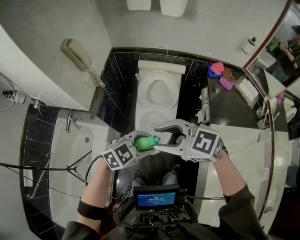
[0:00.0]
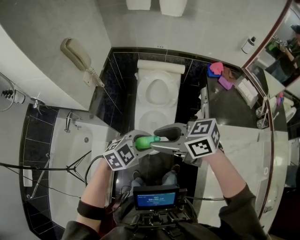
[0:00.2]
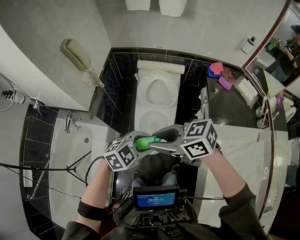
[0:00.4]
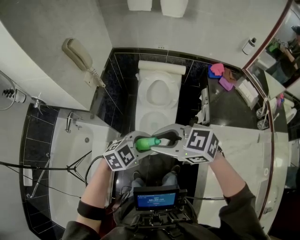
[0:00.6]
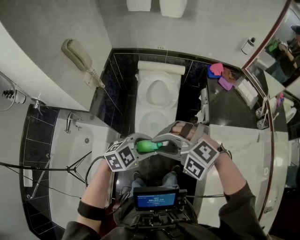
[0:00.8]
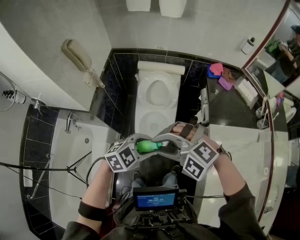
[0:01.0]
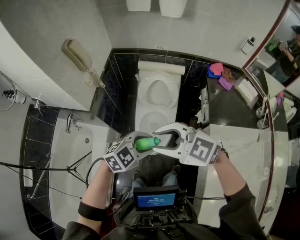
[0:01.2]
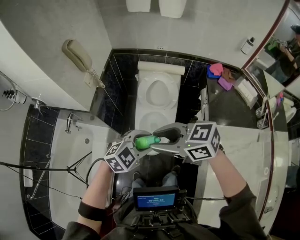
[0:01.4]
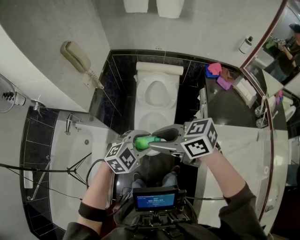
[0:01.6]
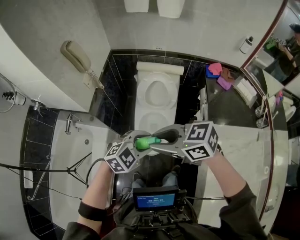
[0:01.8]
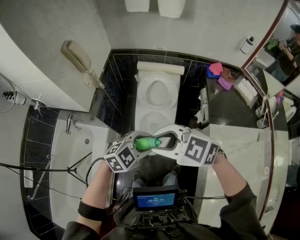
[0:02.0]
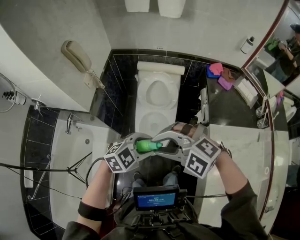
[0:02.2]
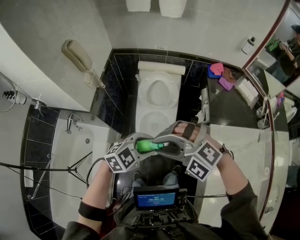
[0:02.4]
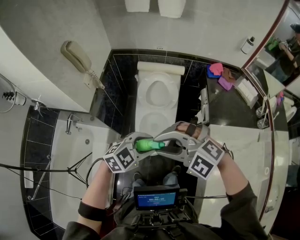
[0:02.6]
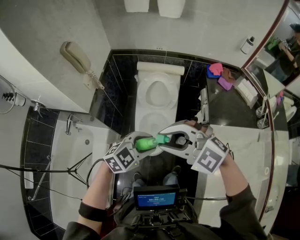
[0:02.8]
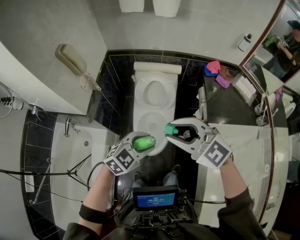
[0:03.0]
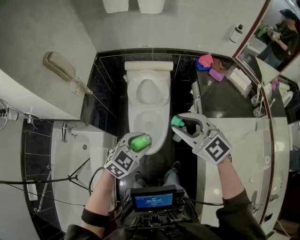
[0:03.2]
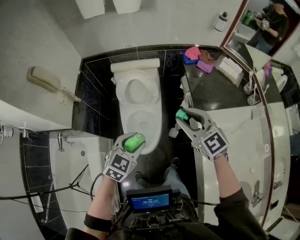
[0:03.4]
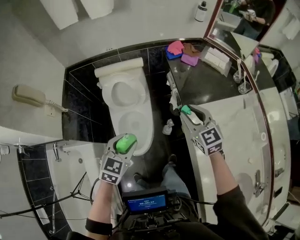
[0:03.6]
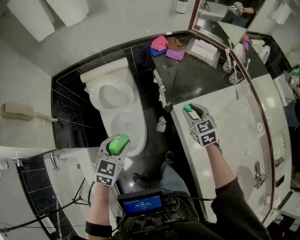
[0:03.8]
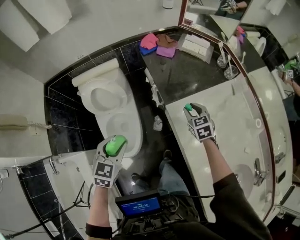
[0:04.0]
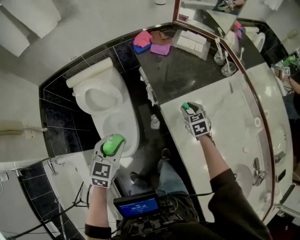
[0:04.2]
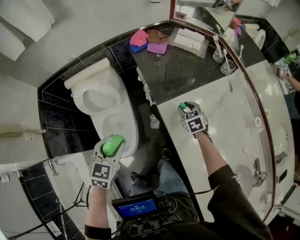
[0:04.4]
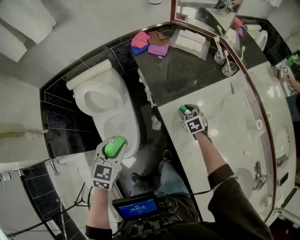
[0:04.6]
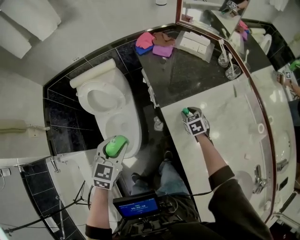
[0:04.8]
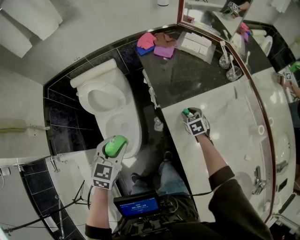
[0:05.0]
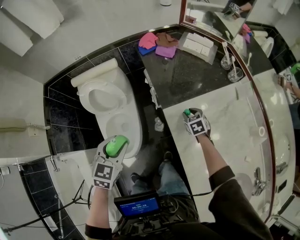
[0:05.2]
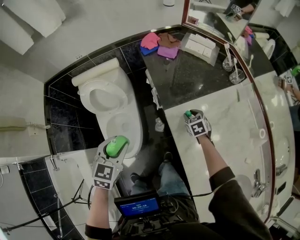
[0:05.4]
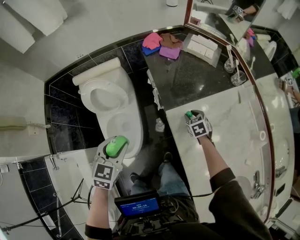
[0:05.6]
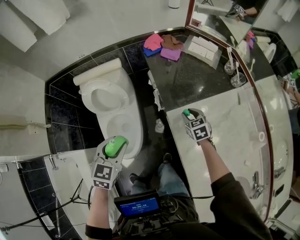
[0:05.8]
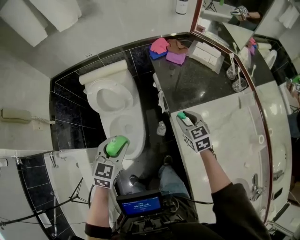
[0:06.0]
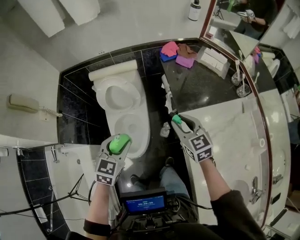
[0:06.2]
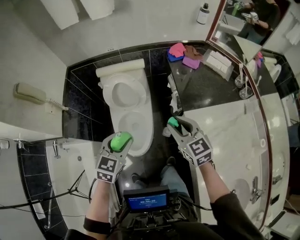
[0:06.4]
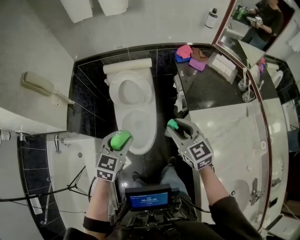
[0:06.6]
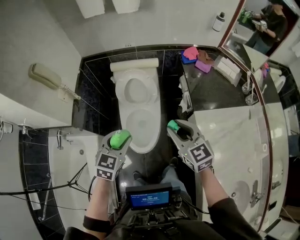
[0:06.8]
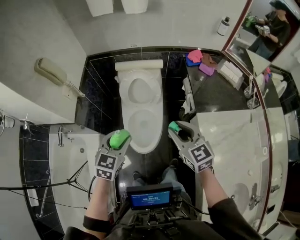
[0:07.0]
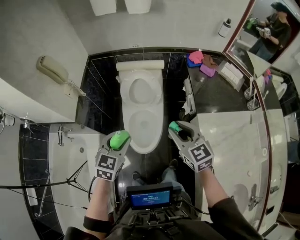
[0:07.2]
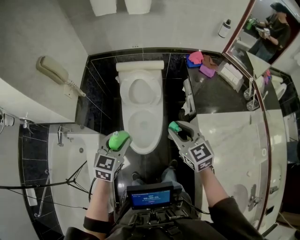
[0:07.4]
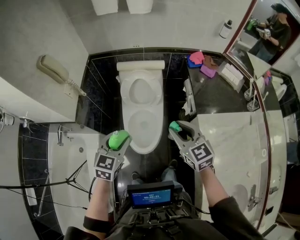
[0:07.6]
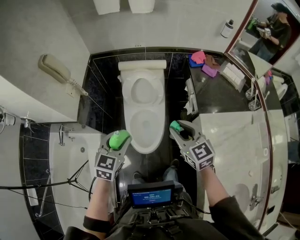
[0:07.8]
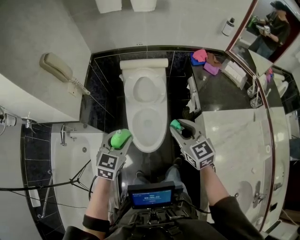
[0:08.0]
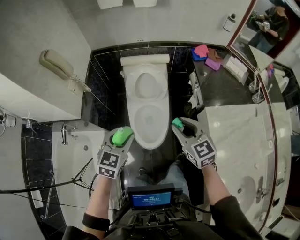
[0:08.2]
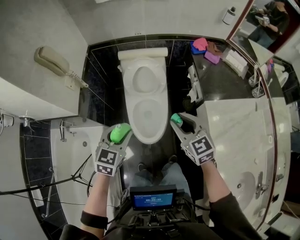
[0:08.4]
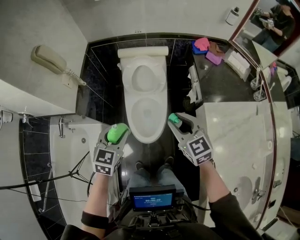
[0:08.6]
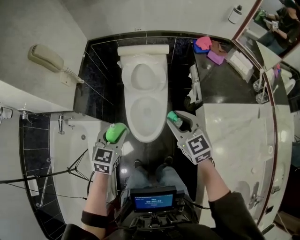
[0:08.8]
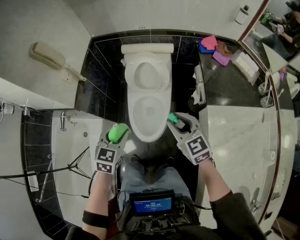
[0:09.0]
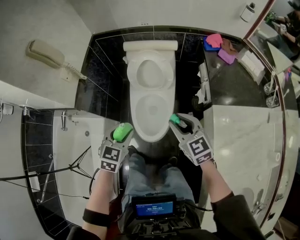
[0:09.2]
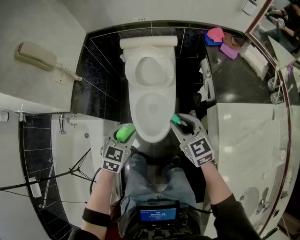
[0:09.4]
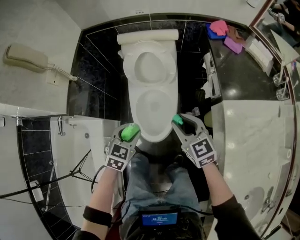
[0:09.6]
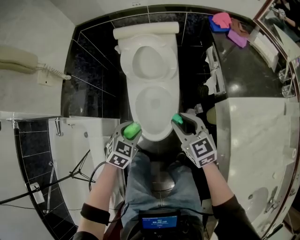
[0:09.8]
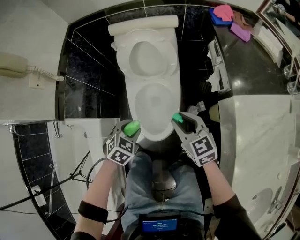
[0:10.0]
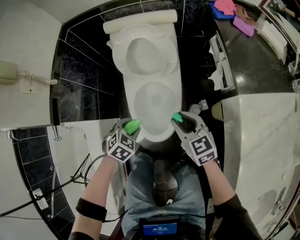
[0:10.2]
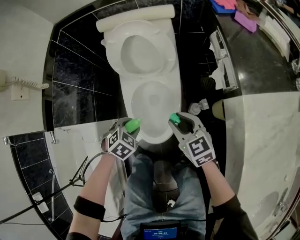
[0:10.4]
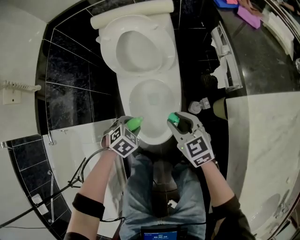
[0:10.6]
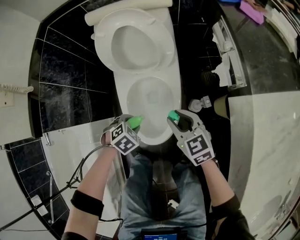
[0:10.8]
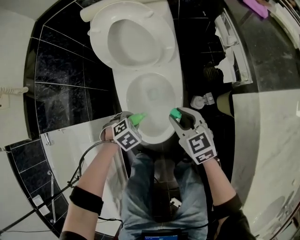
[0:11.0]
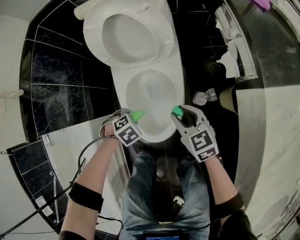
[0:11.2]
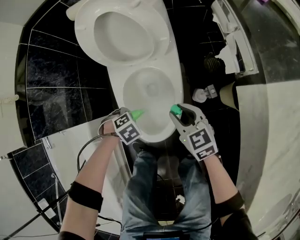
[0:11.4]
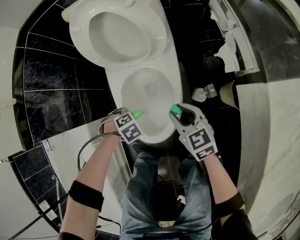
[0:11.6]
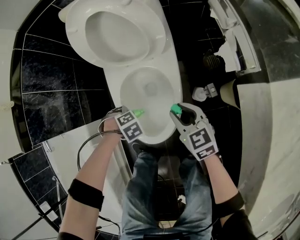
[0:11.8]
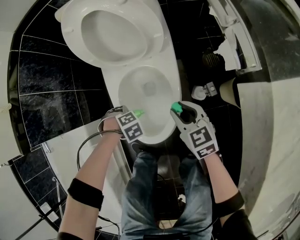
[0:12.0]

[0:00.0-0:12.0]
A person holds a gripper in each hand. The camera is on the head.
0:00.0 to 0:01.6: The right gripper swivels approximately 30 degrees.
0:01.6 to 0:03.0: The right gripper ends up approximately 5 cm from where it was, and twists approximately 50 degrees counterclockwise, seen from behind.
0:03.0 to 0:04.4: The left gripper moves approximately 20 cm. The right gripper changes place by approximately 60 cm, and angles its fingers downward, by some 30 degrees.
0:04.4 to 0:06.0: The right gripper travels upward and to the left by about 15 cm.
0:06.0 to 0:07.6: The right gripper travels to the left and upward by approximately 30 cm, and rotates about 20 degrees; the left gripper travels to the left by about 20 cm.
0:07.6 to 0:09.0: Both grippers travel together downward, approximately 5 cm.
0:09.0 to 0:10.4: The two grippers go approximately 30 cm downward. The left gripper tilts its fingers some 30 degrees downward.
0:10.4 to 0:12.0: The two grippers go about 20 cm downward. The left gripper changes its angle by some 40 degrees.

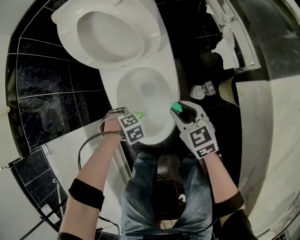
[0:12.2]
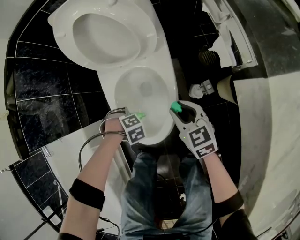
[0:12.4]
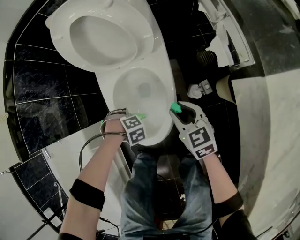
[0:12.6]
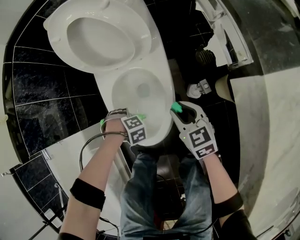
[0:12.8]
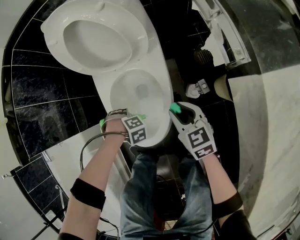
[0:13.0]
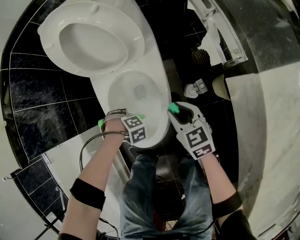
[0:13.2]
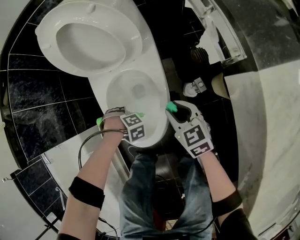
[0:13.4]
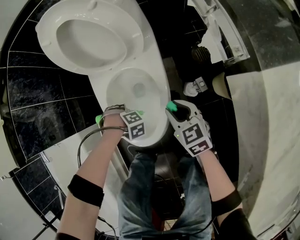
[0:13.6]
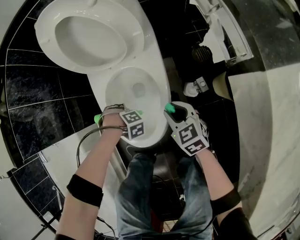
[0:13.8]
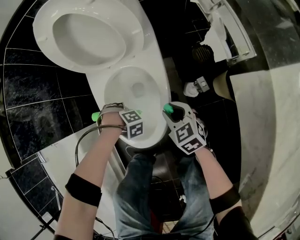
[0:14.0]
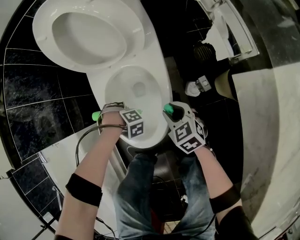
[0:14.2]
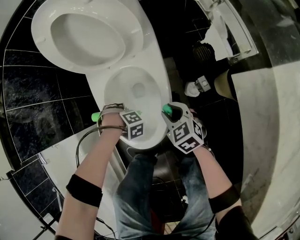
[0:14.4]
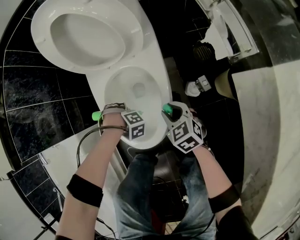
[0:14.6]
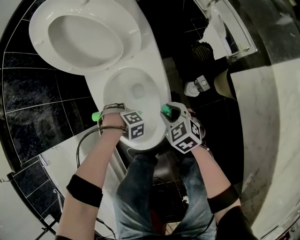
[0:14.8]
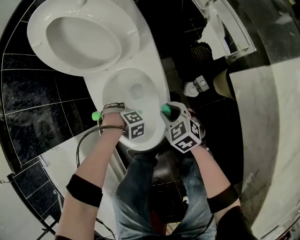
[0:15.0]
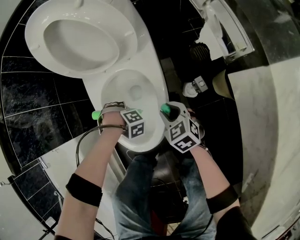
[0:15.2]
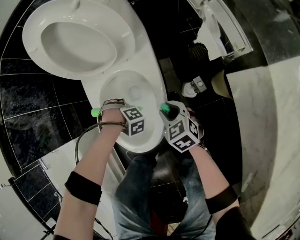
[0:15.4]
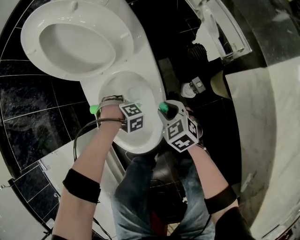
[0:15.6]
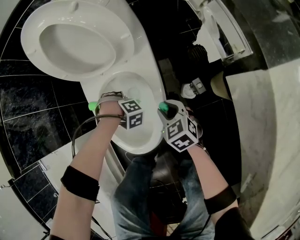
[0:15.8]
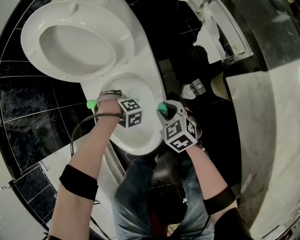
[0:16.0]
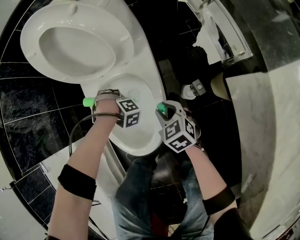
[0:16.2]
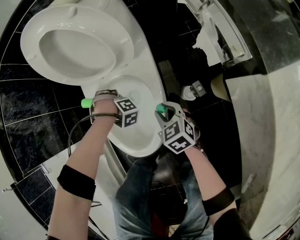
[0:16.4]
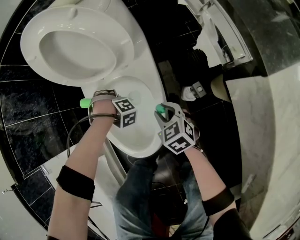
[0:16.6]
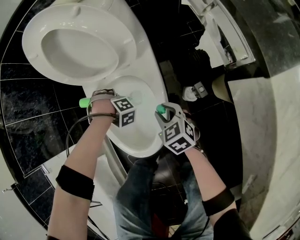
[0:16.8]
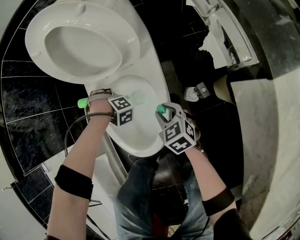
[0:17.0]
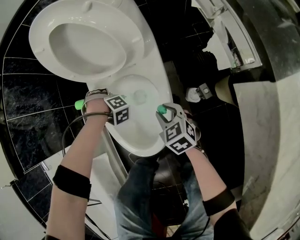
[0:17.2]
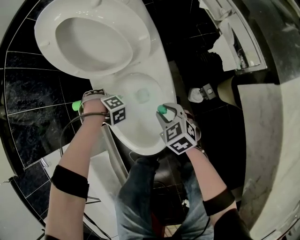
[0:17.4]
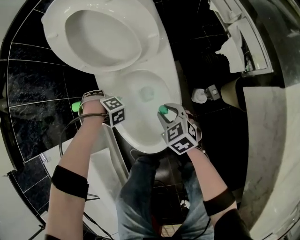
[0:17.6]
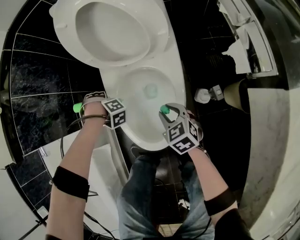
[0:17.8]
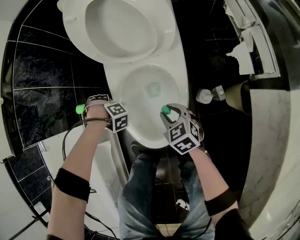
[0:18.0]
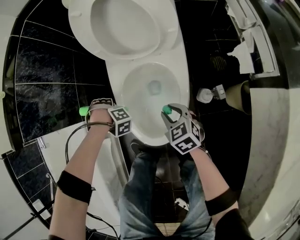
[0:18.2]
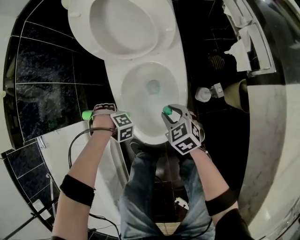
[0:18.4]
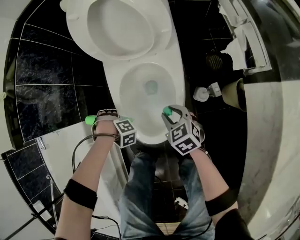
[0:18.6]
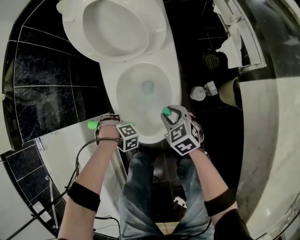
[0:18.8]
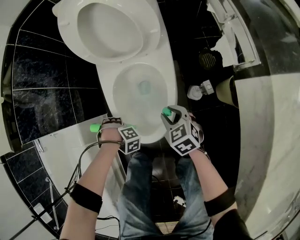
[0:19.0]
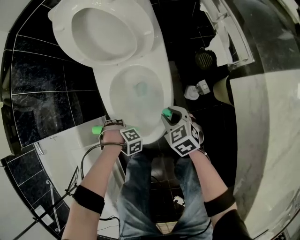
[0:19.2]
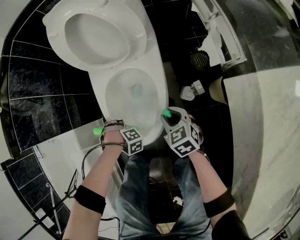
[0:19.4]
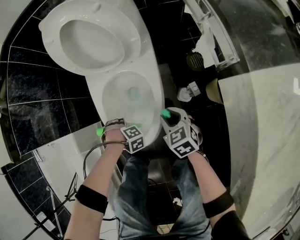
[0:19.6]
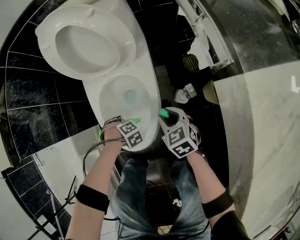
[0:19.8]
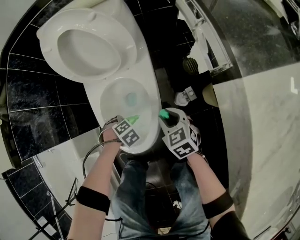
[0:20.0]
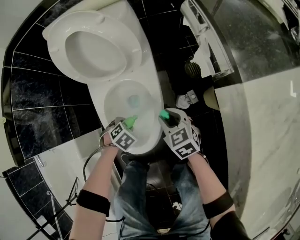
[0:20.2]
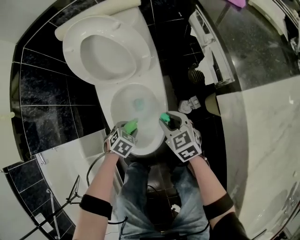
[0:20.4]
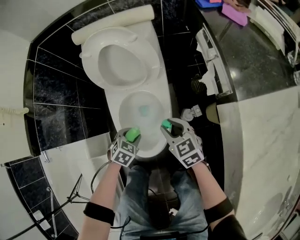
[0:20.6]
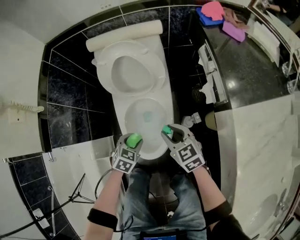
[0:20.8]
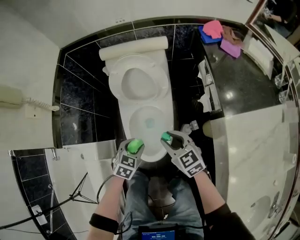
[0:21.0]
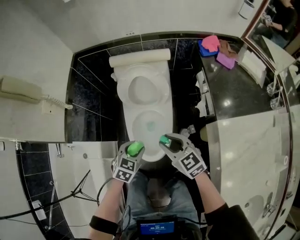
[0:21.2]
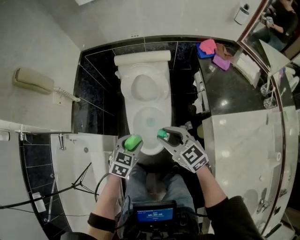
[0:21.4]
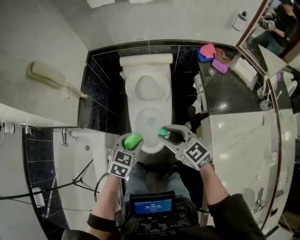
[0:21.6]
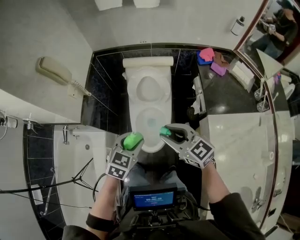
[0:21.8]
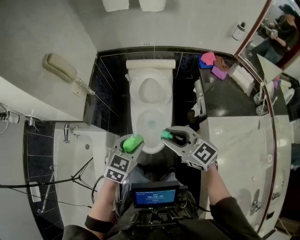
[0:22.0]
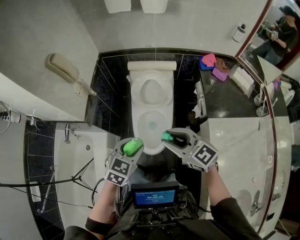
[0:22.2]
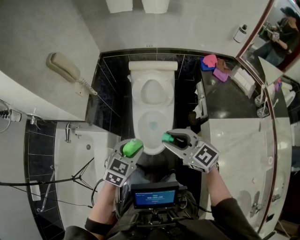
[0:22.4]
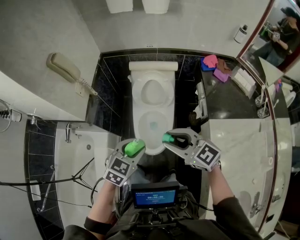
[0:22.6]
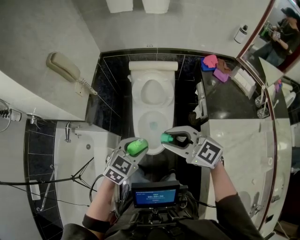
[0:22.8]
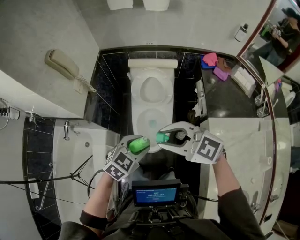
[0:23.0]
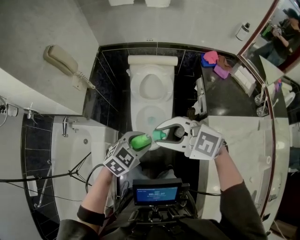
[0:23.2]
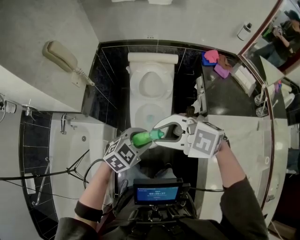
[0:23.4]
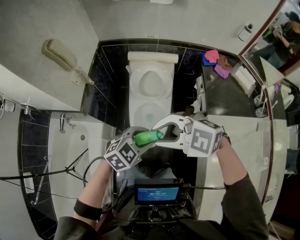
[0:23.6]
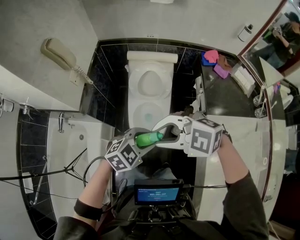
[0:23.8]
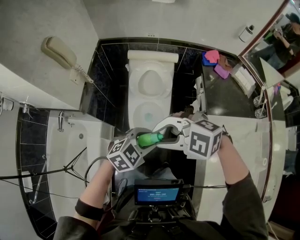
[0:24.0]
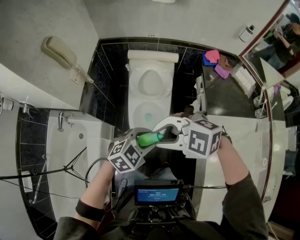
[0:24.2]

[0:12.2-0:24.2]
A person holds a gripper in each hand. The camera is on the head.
0:12.2 to 0:13.8: The right gripper travels downward by approximately 5 cm.
0:13.8 to 0:15.2: The right gripper heads downward, covering some 5 cm.
0:15.2 to 0:16.6: The left gripper moves to the right and forward, about 10 cm.
0:16.6 to 0:18.2: The left gripper is displaced to the left and forward by roughly 20 cm. Meanwhile the right gripper shifts some 10 cm to the left and forward.
0:18.2 to 0:19.8: The right gripper ends up about 10 cm from where it was; the left gripper shifts by approximately 20 cm, and changes its angle by approximately 20 degrees.
0:19.8 to 0:21.2: Both grippers move upward, some 40 cm. The right gripper rotates roughly 30 degrees; the left gripper rotates about 70 degrees.
0:21.2 to 0:22.6: Both grippers travel together upward, about 25 cm. The right gripper changes its angle by some 20 degrees.
0:22.6 to 0:24.2: The left gripper shifts by roughly 5 cm, and rotates roughly 20 degrees, while the right gripper ends up approximately 5 cm from where it was, and swivels roughly 50 degrees.
